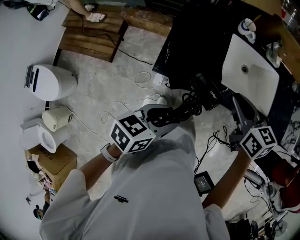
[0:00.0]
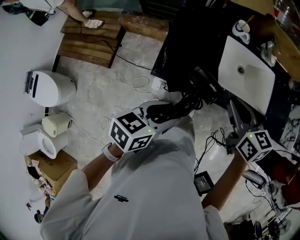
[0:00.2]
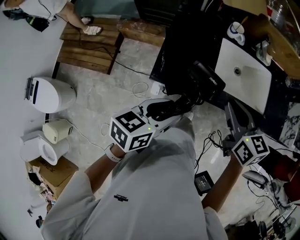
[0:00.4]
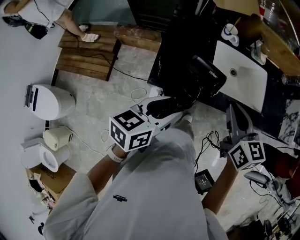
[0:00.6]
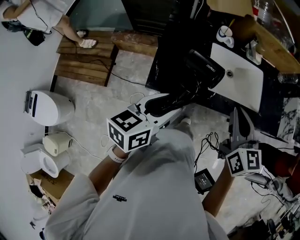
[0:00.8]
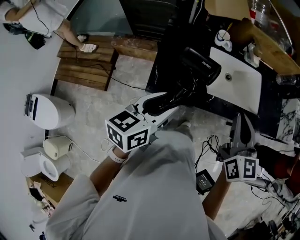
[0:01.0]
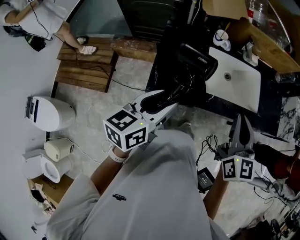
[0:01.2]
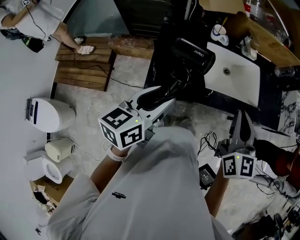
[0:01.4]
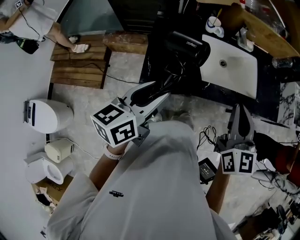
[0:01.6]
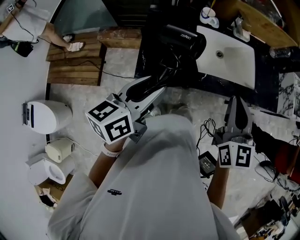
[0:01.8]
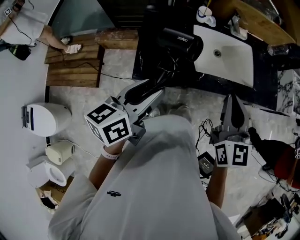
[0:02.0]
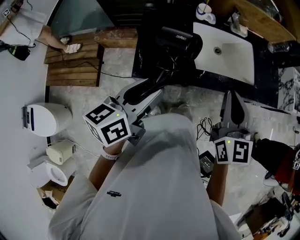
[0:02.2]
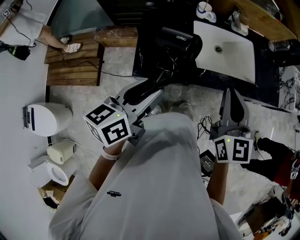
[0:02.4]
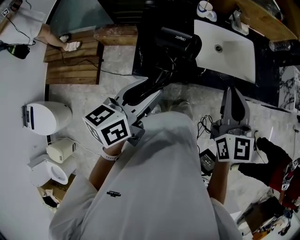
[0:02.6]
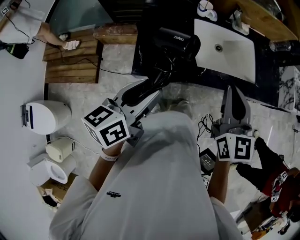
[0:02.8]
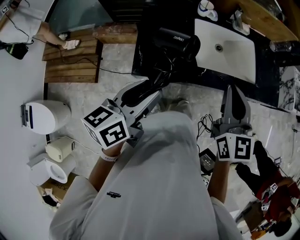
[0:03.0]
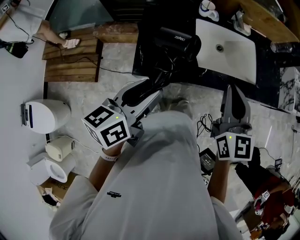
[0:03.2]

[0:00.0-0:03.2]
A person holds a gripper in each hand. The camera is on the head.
0:00.0 to 0:01.6: The right gripper shifts about 15 cm upward, to the right and backward, and rotates approximately 40 degrees; the left gripper travels upward and forward by about 15 cm, and rotates approximately 20 degrees.
0:01.6 to 0:03.2: The grippers make only small movements.

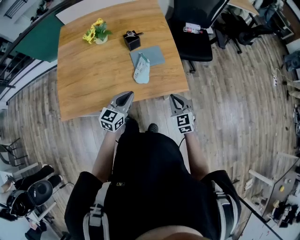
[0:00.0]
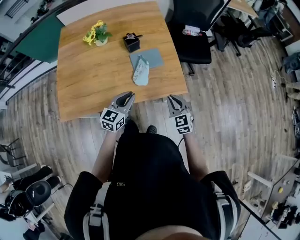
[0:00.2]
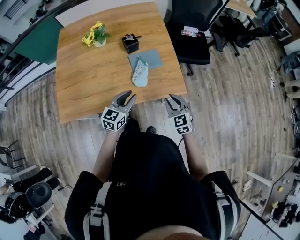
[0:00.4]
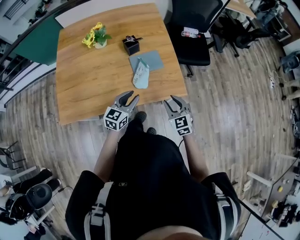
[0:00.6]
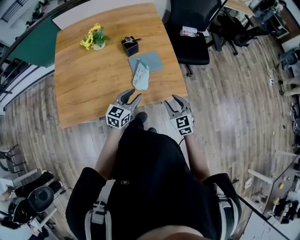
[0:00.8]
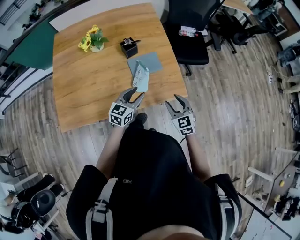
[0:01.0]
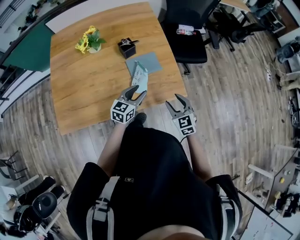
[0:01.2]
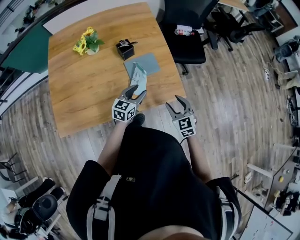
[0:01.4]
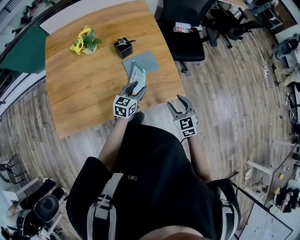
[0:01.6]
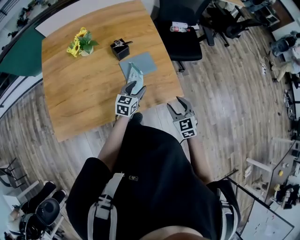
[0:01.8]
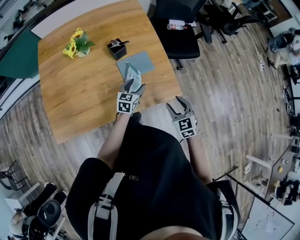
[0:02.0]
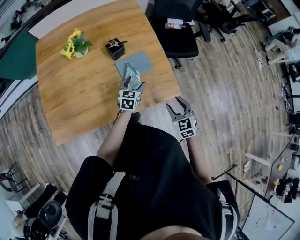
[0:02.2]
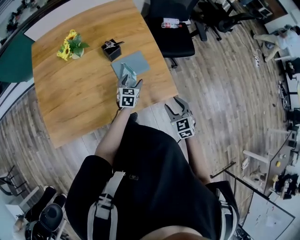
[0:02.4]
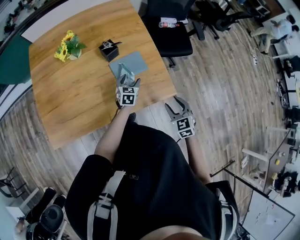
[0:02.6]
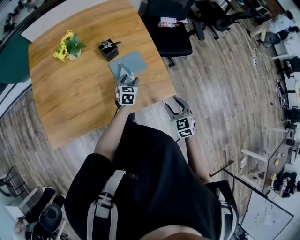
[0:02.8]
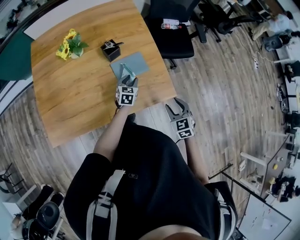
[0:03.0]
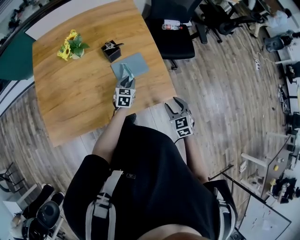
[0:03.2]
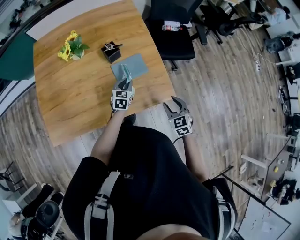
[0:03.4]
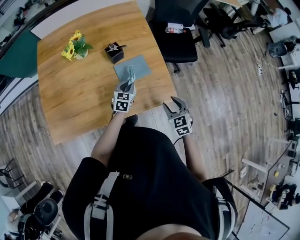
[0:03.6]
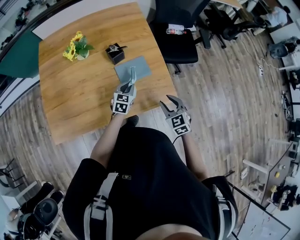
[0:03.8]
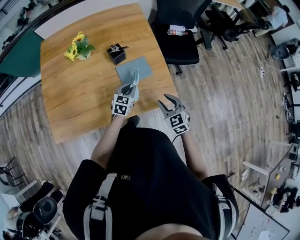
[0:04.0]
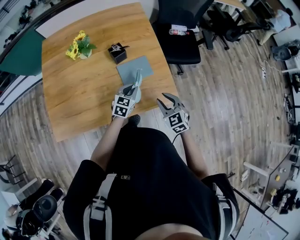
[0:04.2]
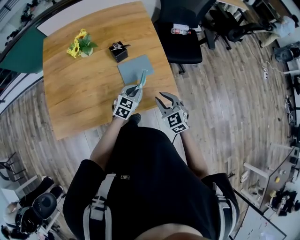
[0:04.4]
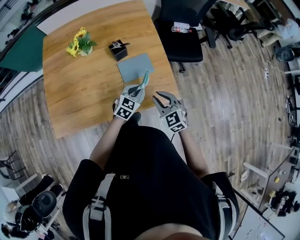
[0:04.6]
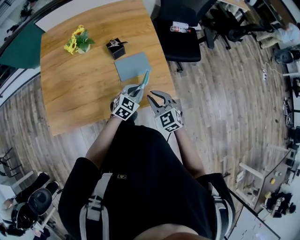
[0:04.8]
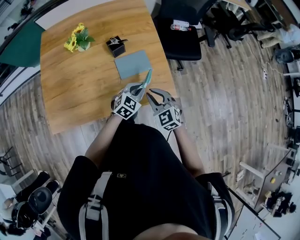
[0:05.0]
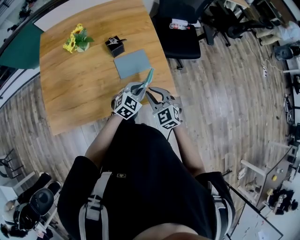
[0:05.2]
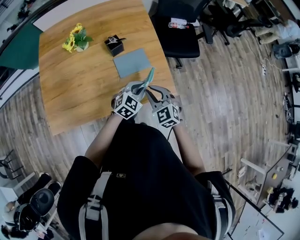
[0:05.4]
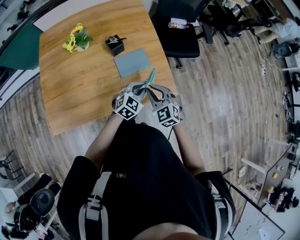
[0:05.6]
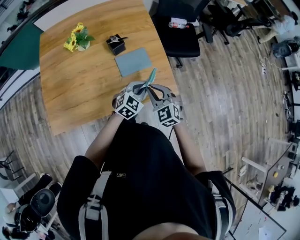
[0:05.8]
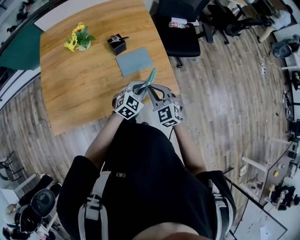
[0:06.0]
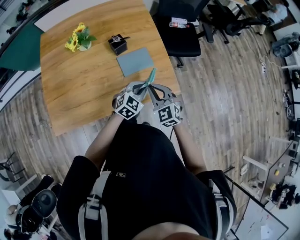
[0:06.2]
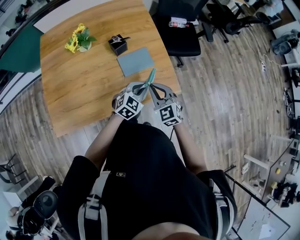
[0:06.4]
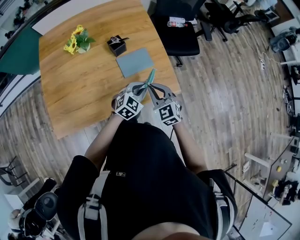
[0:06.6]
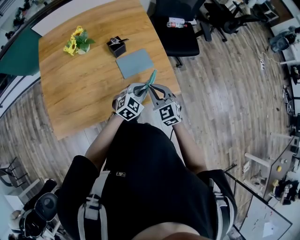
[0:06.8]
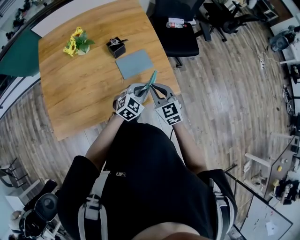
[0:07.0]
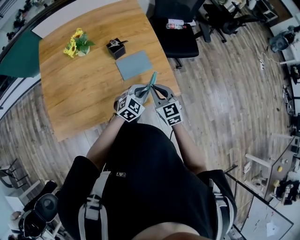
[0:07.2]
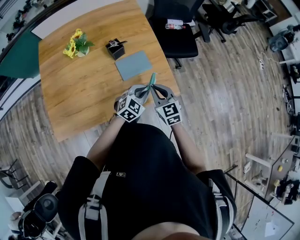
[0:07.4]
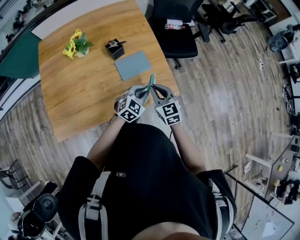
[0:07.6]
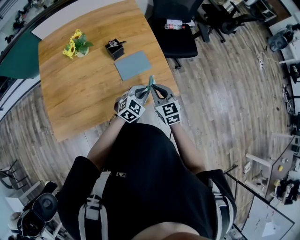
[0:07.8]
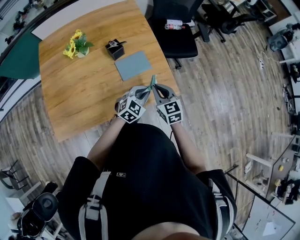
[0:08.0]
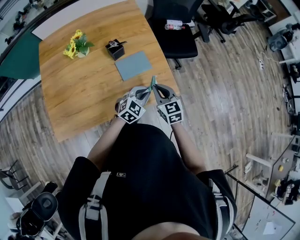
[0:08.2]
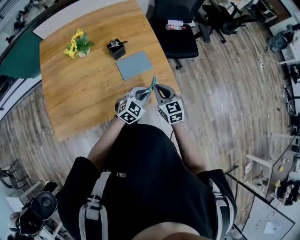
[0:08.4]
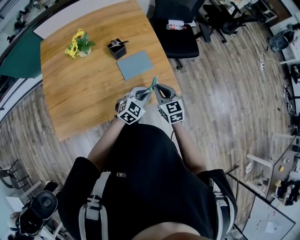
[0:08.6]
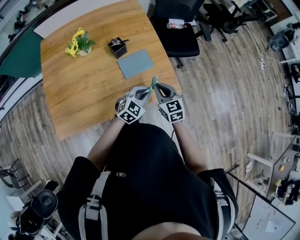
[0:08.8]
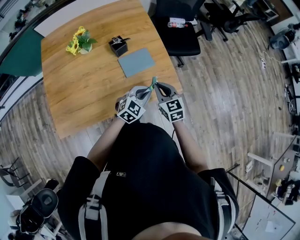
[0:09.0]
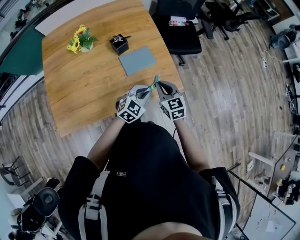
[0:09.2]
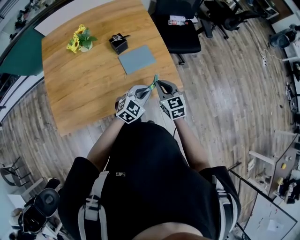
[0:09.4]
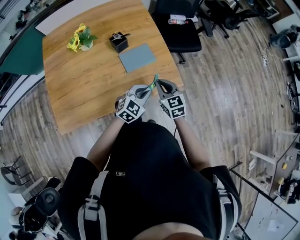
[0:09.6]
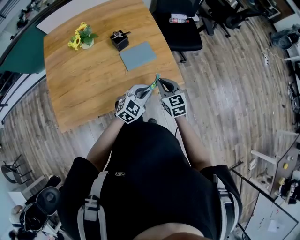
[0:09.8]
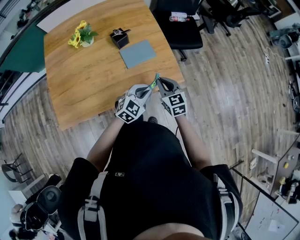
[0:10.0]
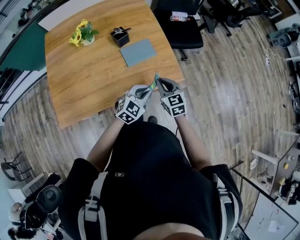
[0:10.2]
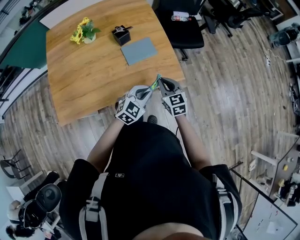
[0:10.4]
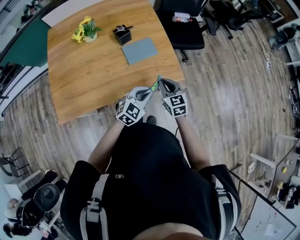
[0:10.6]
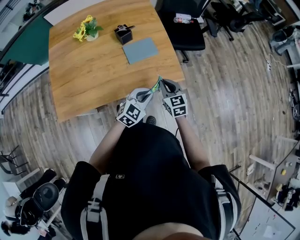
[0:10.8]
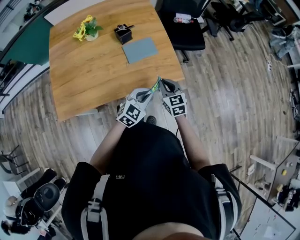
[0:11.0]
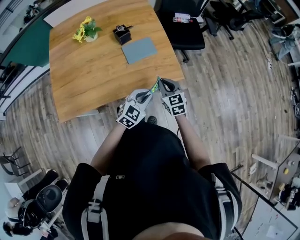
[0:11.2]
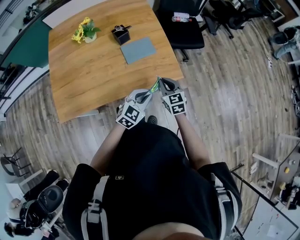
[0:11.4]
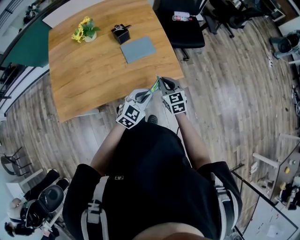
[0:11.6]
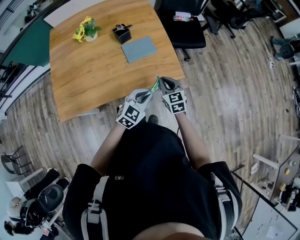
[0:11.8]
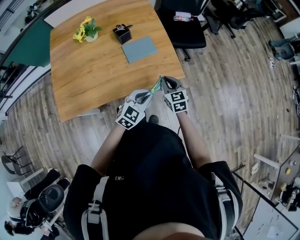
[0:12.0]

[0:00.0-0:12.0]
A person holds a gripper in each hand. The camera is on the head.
0:00.0 to 0:01.6: The left gripper is displaced forward and downward by roughly 15 cm, and opens its fingers. Meanwhile the right gripper opens up.
0:01.6 to 0:03.0: The left gripper travels forward and downward by roughly 10 cm, and opens and closes again.
0:03.0 to 0:04.4: The left gripper is displaced upward and backward by roughly 10 cm, and closes up, while the right gripper moves to the left and upward, roughly 10 cm, and closes up.
0:04.4 to 0:06.0: The right gripper changes place by approximately 5 cm; the left gripper moves about 5 cm.
0:06.0 to 0:07.6: The right gripper turns by approximately 20 degrees.
0:07.6 to 0:09.0: There are only small adjustments of the grippers.
0:09.0 to 0:10.4: The left gripper is displaced backward by about 10 cm. The right gripper shifts by about 5 cm.
0:10.4 to 0:12.0: The grippers move only a little.

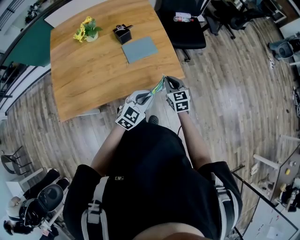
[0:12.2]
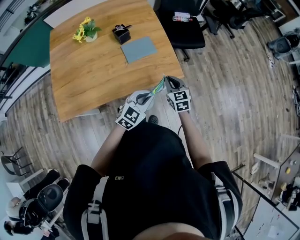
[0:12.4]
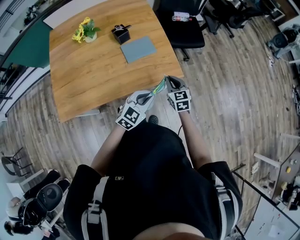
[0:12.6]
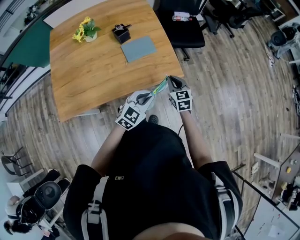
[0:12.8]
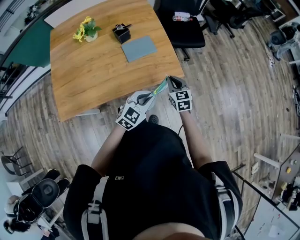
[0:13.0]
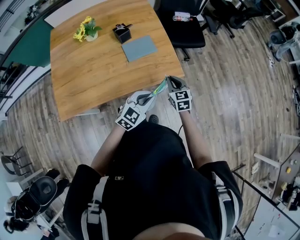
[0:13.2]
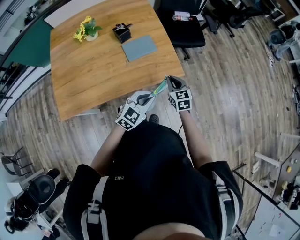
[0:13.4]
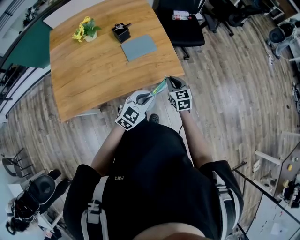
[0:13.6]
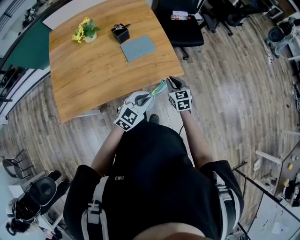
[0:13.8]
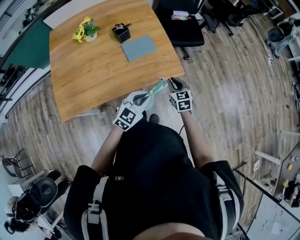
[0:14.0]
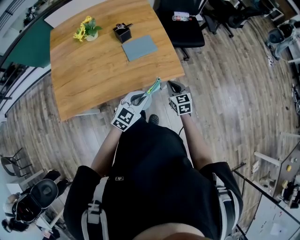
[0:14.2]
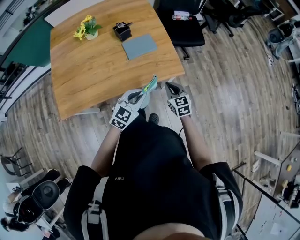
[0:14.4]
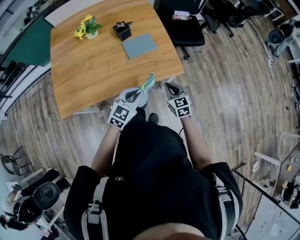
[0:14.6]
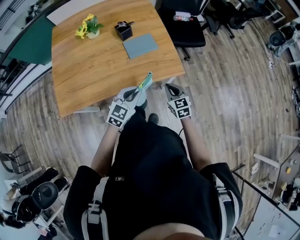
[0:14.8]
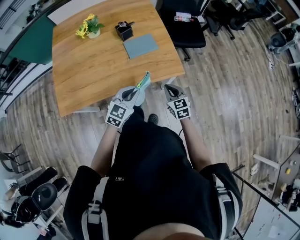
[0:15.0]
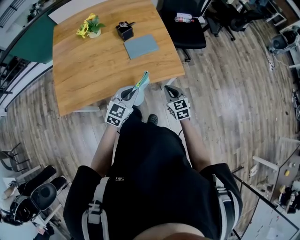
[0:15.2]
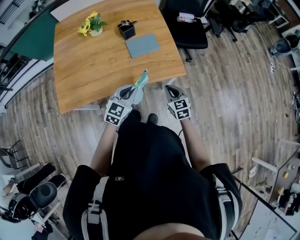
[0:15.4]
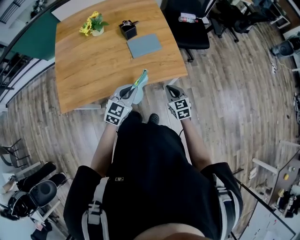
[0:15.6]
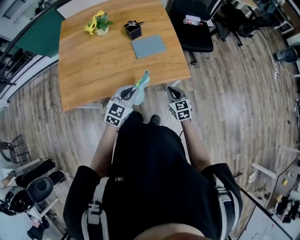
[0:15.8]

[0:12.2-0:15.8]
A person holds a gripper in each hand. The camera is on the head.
0:12.2 to 0:14.0: The grippers stay close to where they were, moving slightly.
0:14.0 to 0:15.8: The right gripper heads backward, covering about 5 cm; the left gripper shifts about 10 cm to the left.

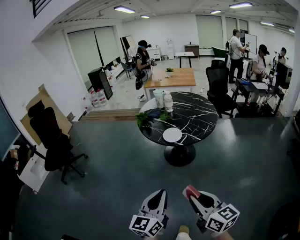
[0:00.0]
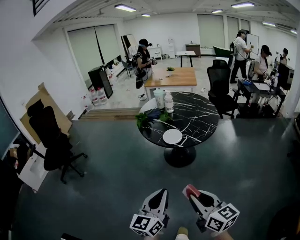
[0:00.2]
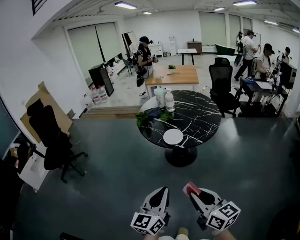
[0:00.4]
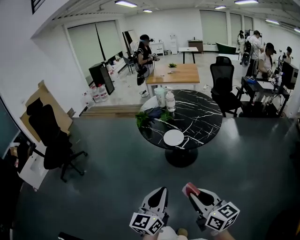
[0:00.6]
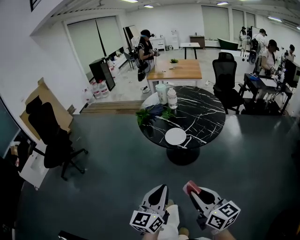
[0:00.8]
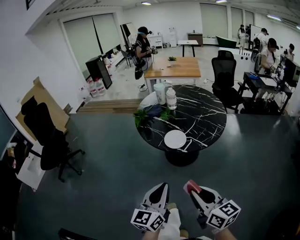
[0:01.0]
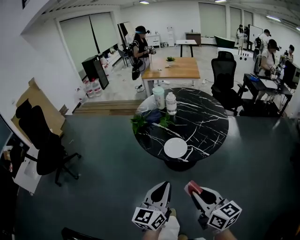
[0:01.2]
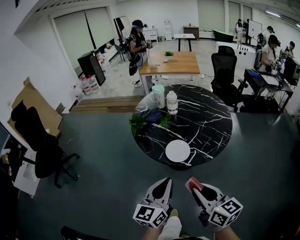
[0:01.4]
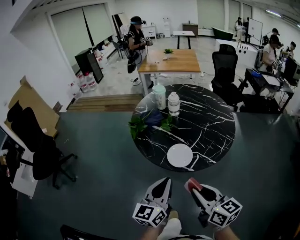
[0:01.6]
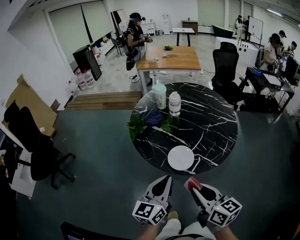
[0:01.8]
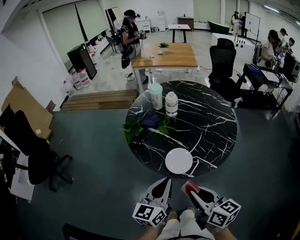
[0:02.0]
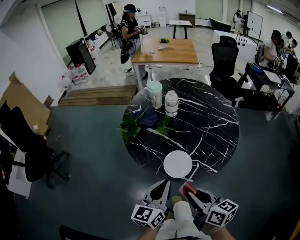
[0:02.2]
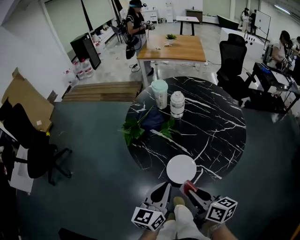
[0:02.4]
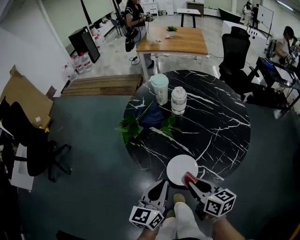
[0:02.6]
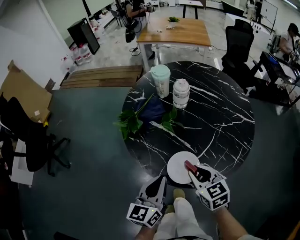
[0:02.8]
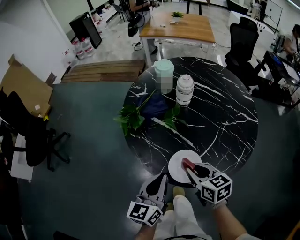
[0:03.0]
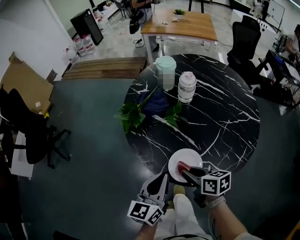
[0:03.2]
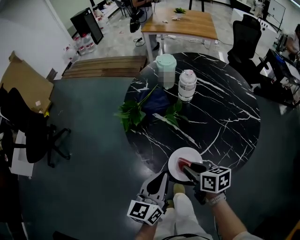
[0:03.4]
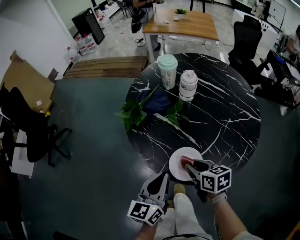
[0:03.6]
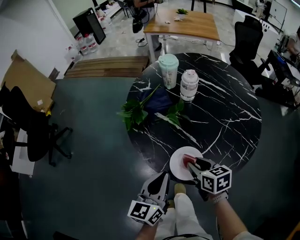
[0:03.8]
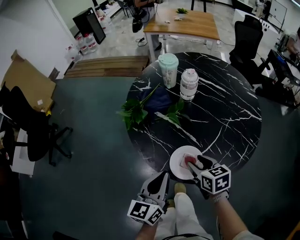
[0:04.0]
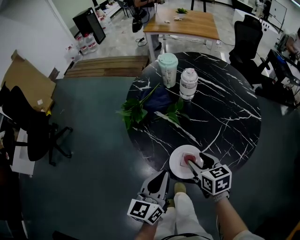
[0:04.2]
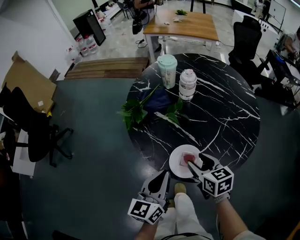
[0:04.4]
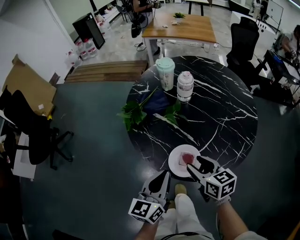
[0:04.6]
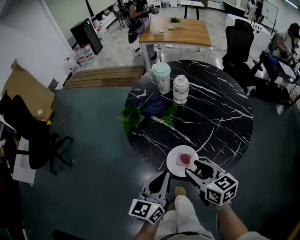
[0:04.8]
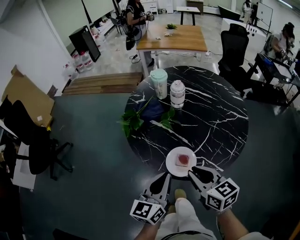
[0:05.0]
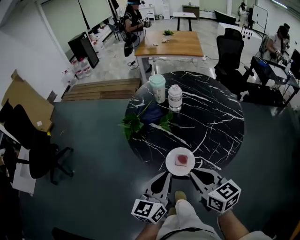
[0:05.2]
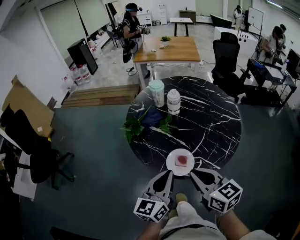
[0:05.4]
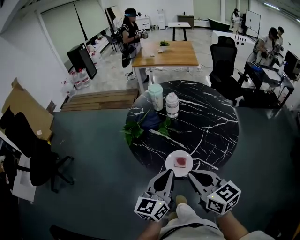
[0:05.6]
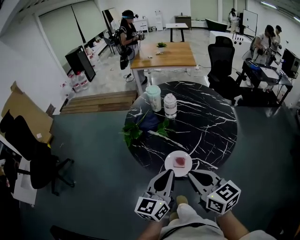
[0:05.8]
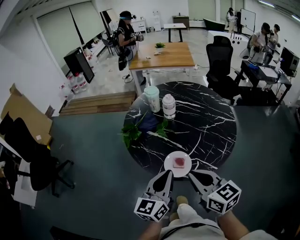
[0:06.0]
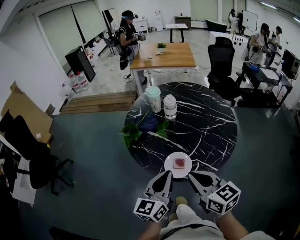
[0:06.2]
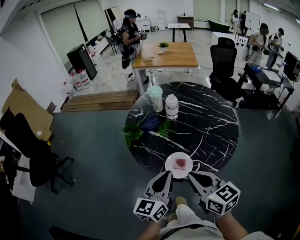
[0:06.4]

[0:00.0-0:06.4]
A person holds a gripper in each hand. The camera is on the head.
0:00.0 to 0:01.6: Both grippers travel together forward, some 35 cm.
0:01.6 to 0:03.2: The right gripper moves forward and downward, roughly 30 cm, and rotates about 30 degrees. Meanwhile the left gripper moves forward and downward, roughly 20 cm.
0:03.2 to 0:04.8: The right gripper goes roughly 10 cm upward, swivels approximately 20 degrees, and opens.
0:04.8 to 0:06.4: The right gripper shifts roughly 15 cm upward and backward, and closes its fingers. Meanwhile the left gripper travels upward by some 5 cm.
